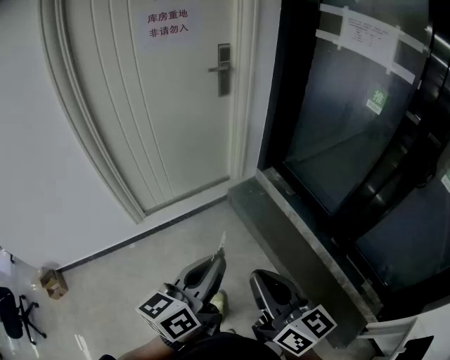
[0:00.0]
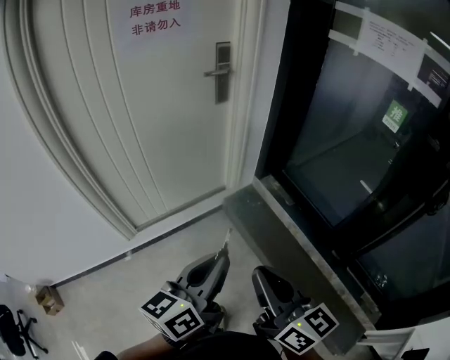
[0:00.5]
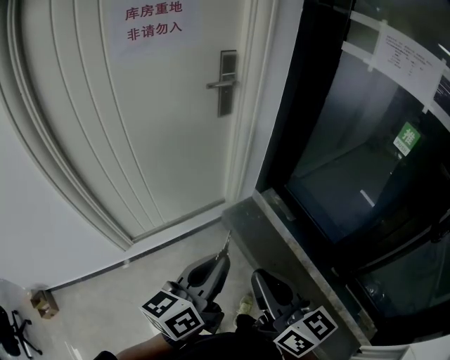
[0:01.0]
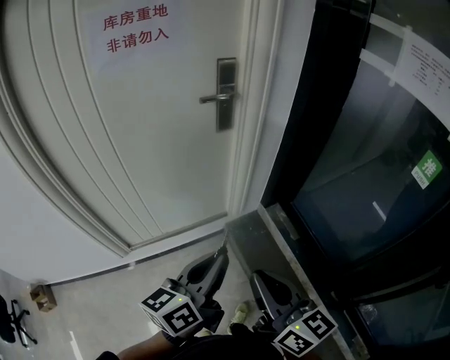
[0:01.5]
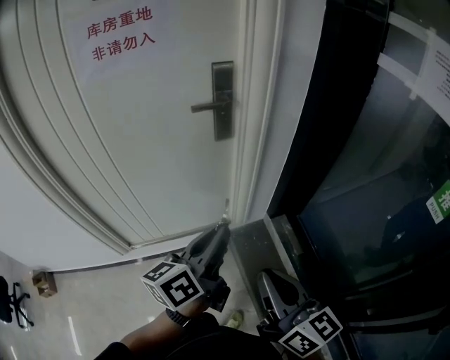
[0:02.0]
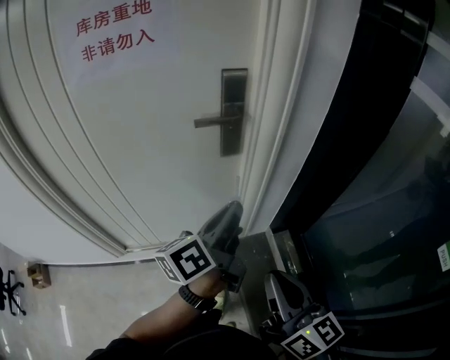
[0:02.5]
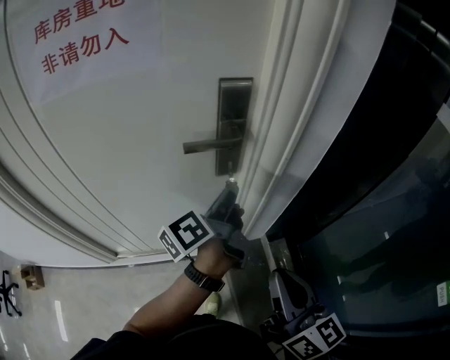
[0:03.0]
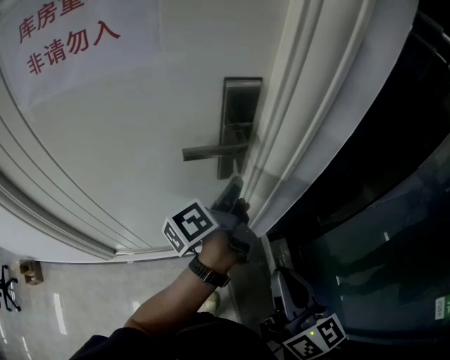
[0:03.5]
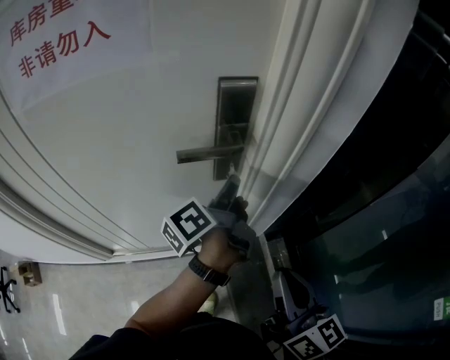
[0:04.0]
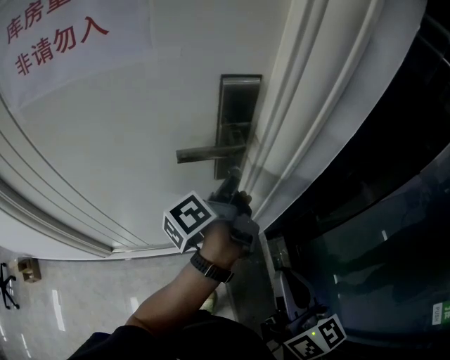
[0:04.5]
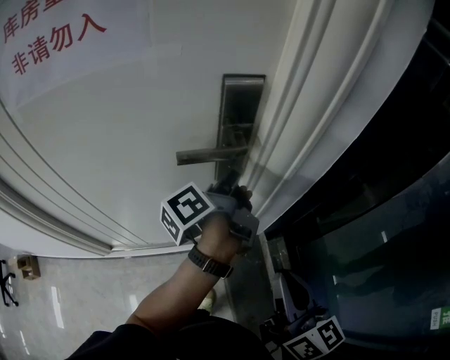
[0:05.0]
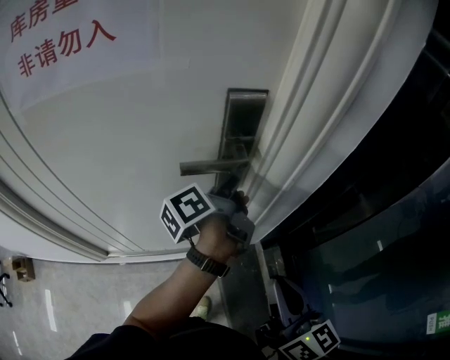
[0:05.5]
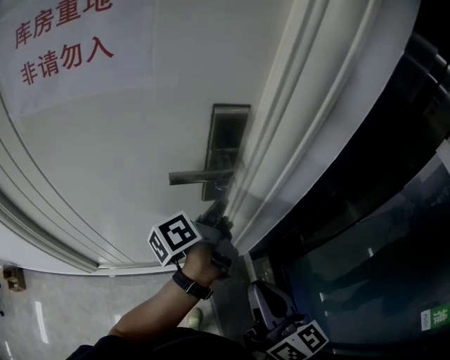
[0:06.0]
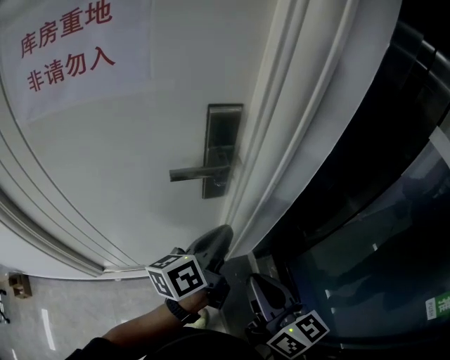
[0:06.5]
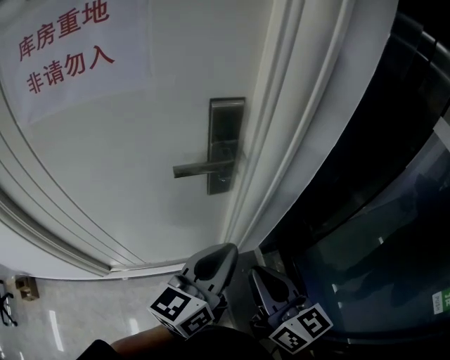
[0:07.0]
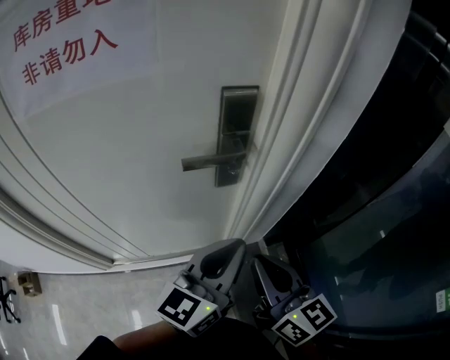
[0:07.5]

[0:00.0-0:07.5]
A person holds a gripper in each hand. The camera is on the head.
0:00.0 to 0:02.0: Both grippers are carried forward, about 50 cm.
0:02.0 to 0:04.0: Both grippers move forward, about 30 cm. The left gripper turns by approximately 40 degrees.
0:04.0 to 0:05.5: The grippers stay close to where they were, moving slightly.
0:05.5 to 0:07.5: The left gripper heads backward, covering some 20 cm, and rolls clockwise, seen from behind, by about 60 degrees.

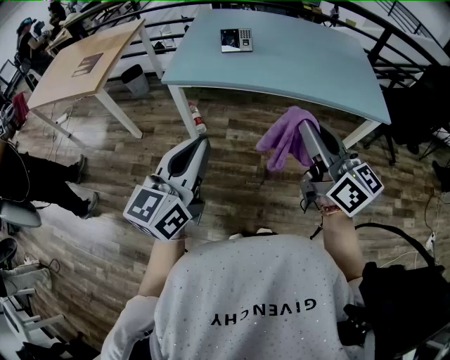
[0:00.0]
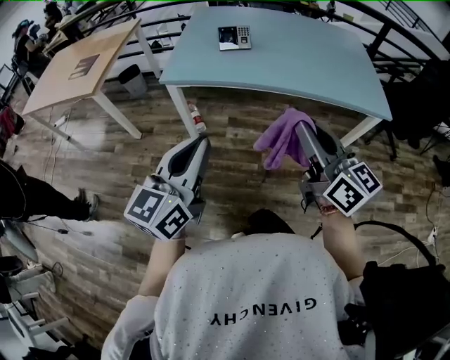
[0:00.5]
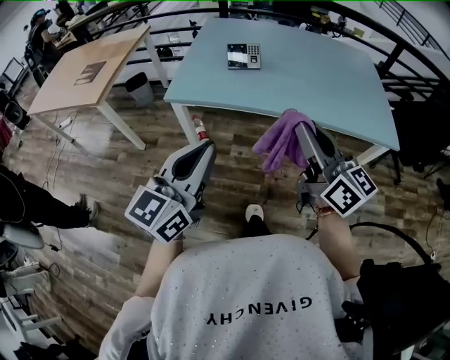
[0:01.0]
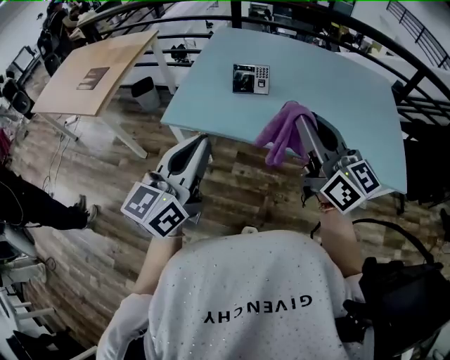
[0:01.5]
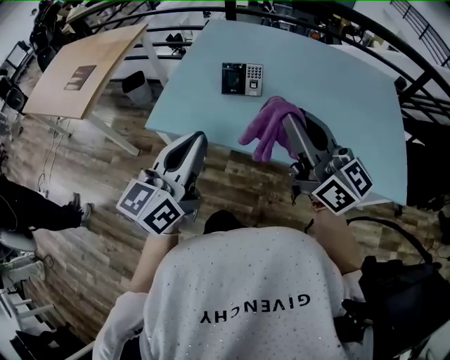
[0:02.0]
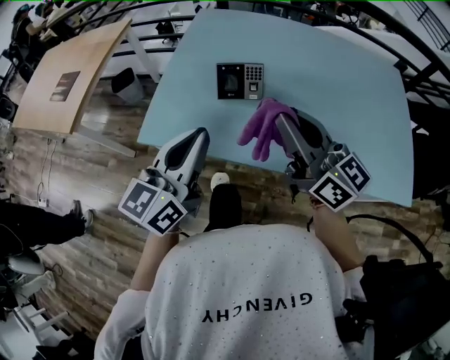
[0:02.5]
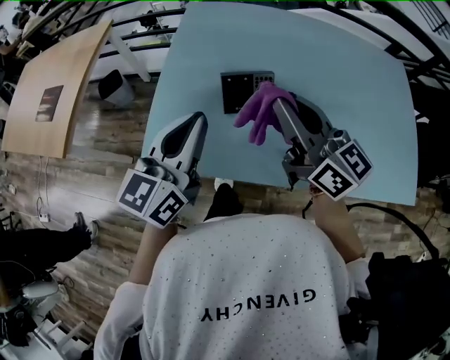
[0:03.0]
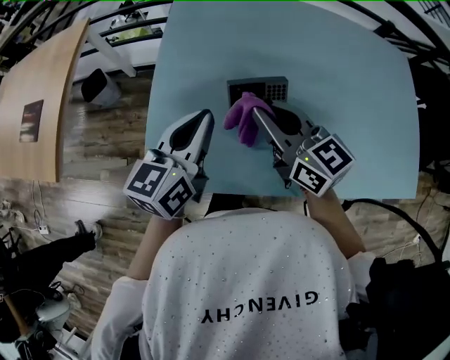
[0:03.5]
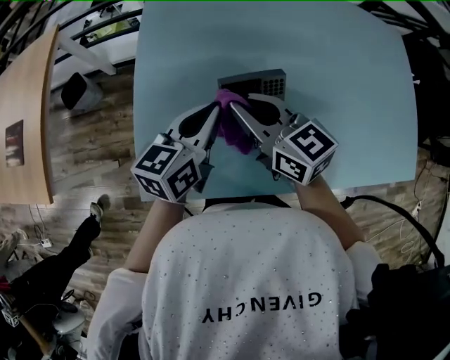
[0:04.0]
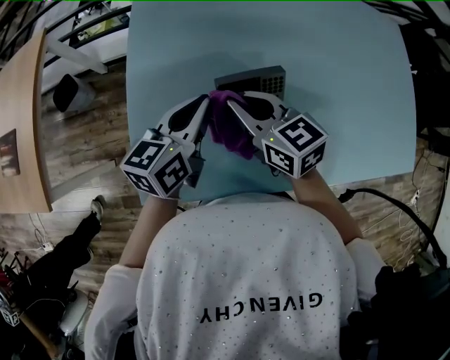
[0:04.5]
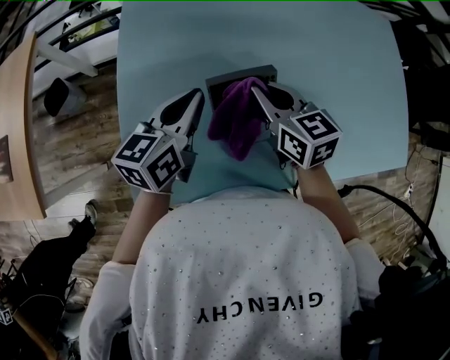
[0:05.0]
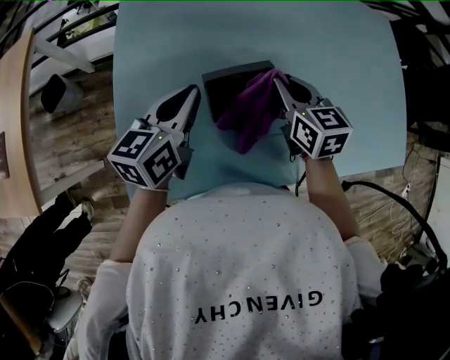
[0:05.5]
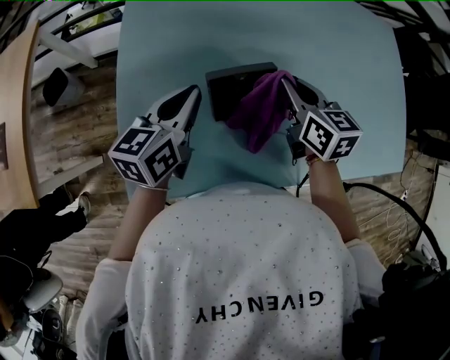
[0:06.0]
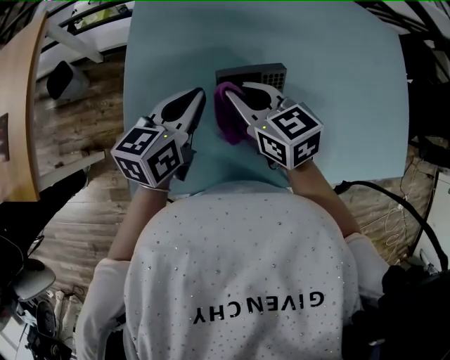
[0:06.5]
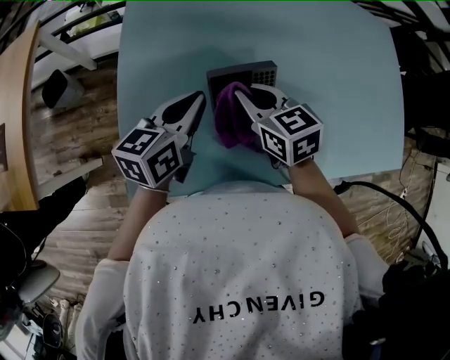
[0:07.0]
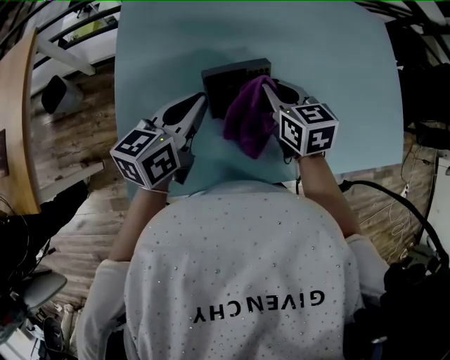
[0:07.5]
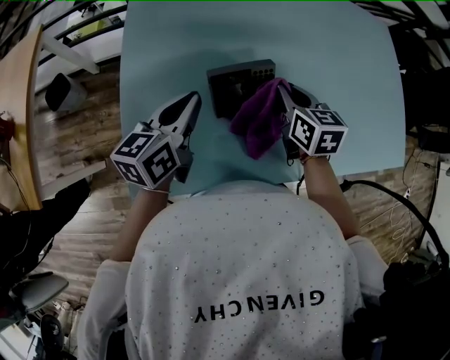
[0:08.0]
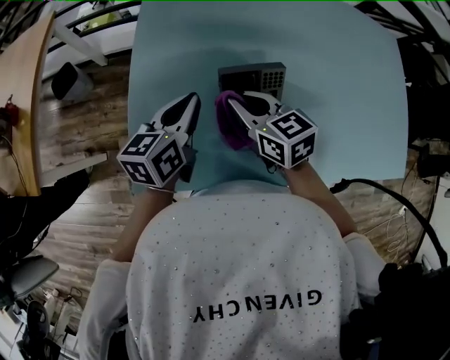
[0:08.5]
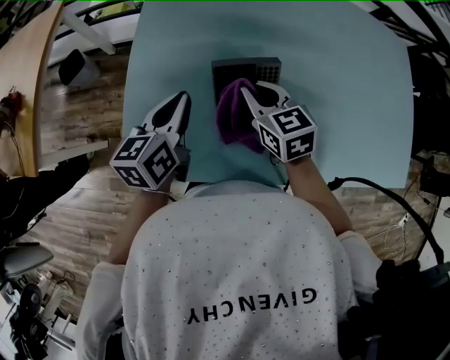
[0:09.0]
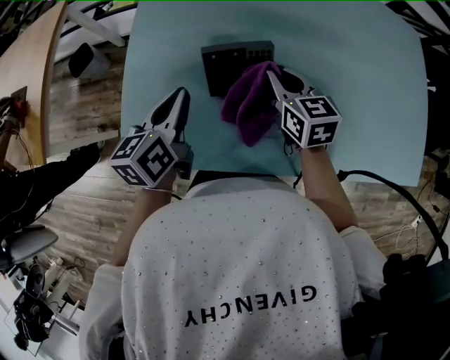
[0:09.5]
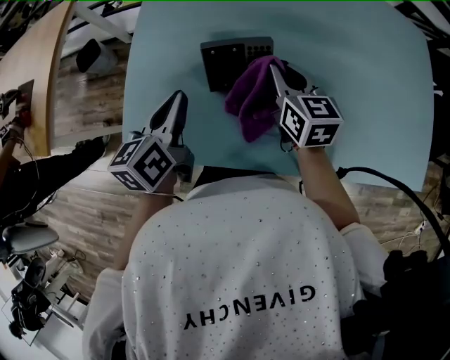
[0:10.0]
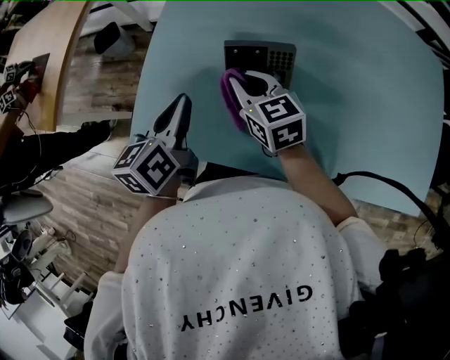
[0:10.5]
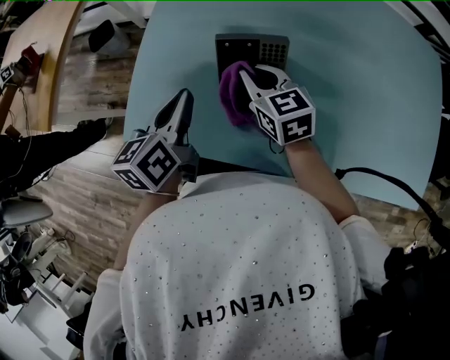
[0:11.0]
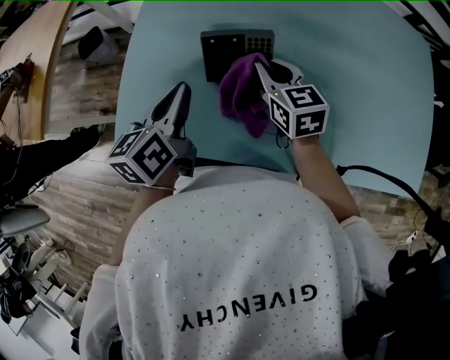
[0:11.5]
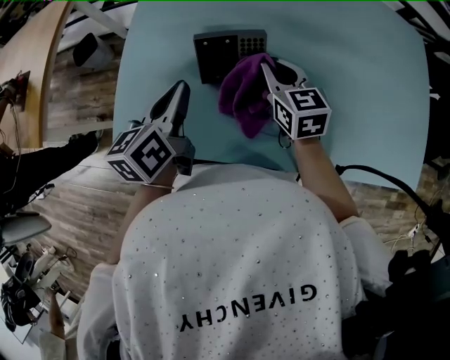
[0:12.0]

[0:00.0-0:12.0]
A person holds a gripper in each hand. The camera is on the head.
0:00.0 to 0:02.0: The grippers both shift forward by approximately 35 cm.
0:02.0 to 0:04.0: The left gripper is displaced forward and downward by roughly 40 cm, and swivels approximately 30 degrees, while the right gripper goes about 40 cm forward, downward and to the left, and angles its fingers downward, by about 30 degrees.
0:04.0 to 0:06.0: The right gripper is displaced to the right by roughly 15 cm, and turns by about 30 degrees.
0:06.0 to 0:08.0: The right gripper reaches some 15 cm to the left, then returns.
0:08.0 to 0:10.0: The right gripper goes to the left and returns, about 15 cm each way. Meanwhile the left gripper travels backward by about 5 cm, and changes its angle by about 20 degrees.
0:10.0 to 0:12.0: The right gripper moves approximately 15 cm to the left and comes back.

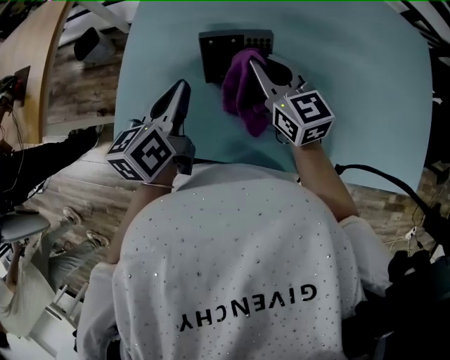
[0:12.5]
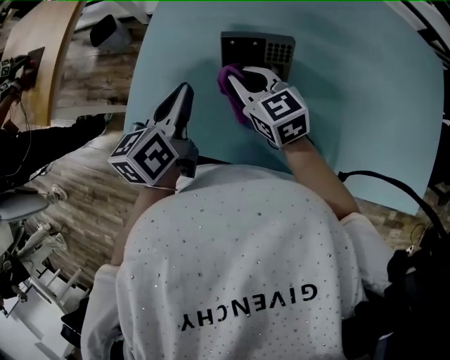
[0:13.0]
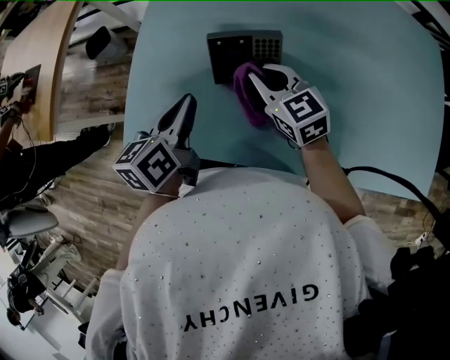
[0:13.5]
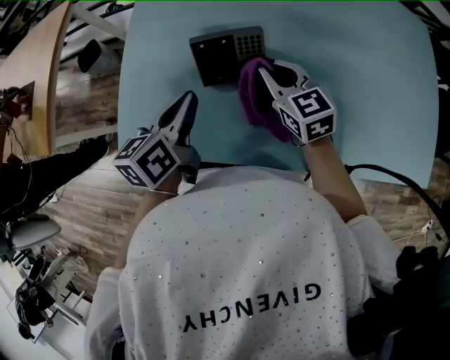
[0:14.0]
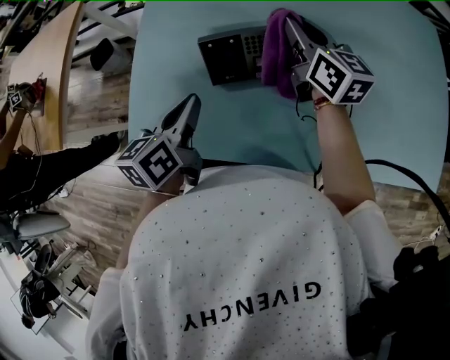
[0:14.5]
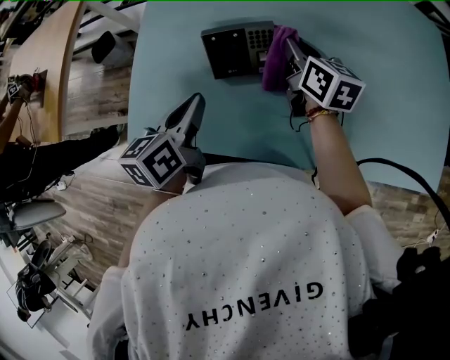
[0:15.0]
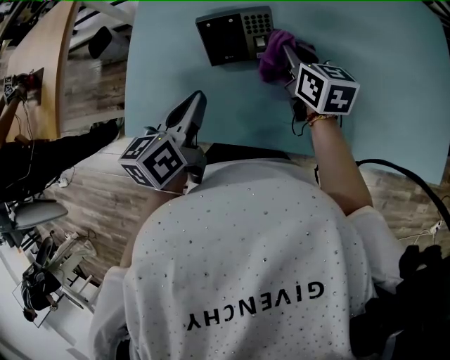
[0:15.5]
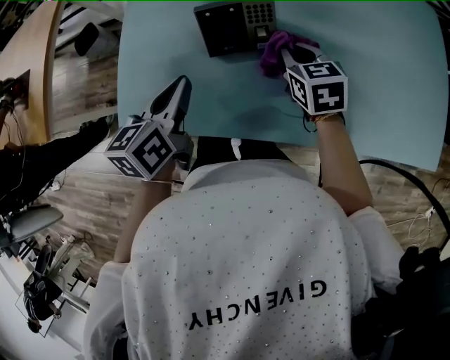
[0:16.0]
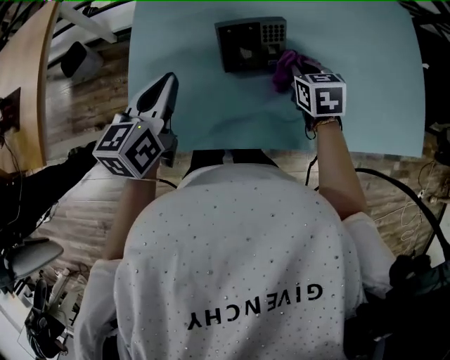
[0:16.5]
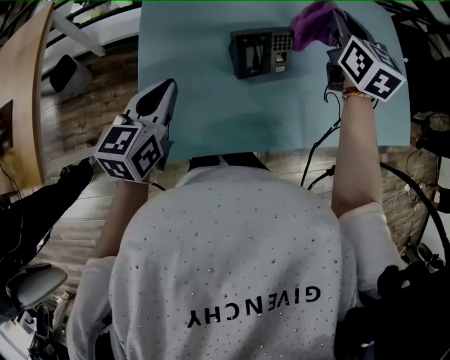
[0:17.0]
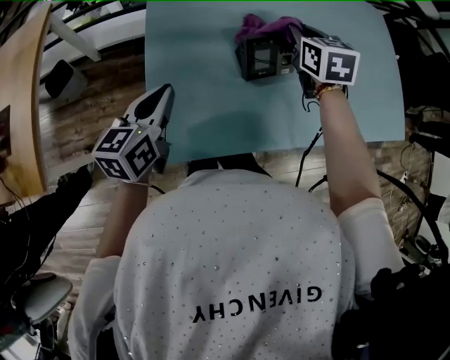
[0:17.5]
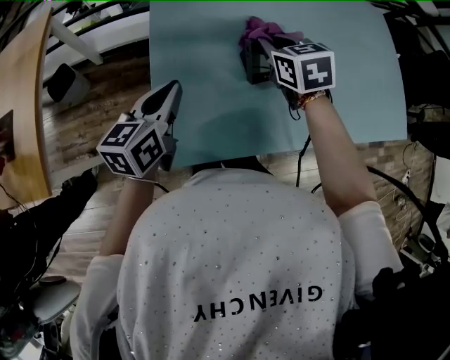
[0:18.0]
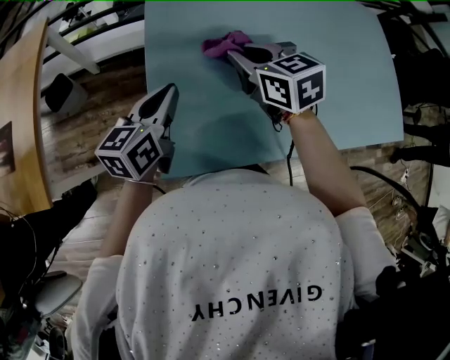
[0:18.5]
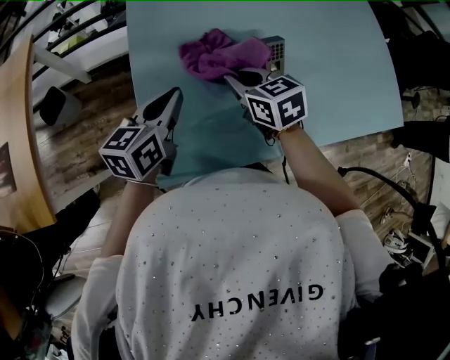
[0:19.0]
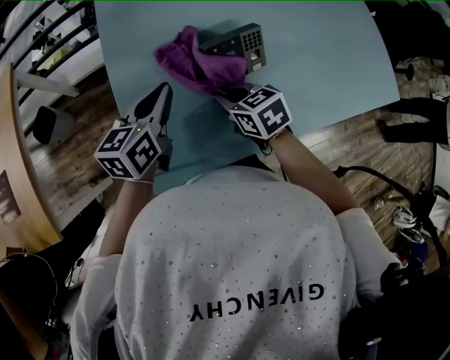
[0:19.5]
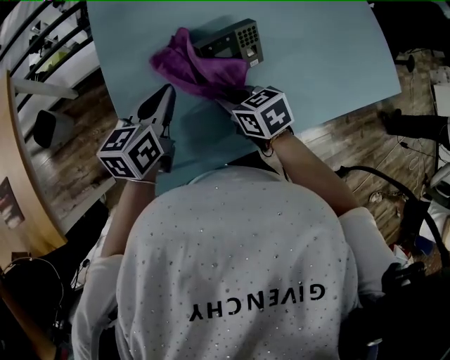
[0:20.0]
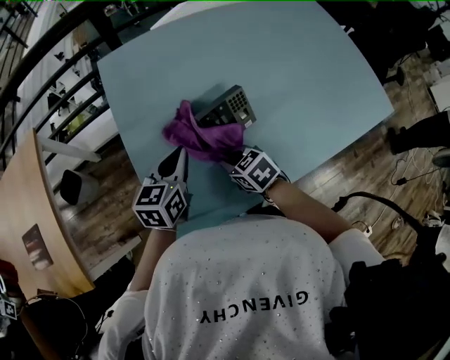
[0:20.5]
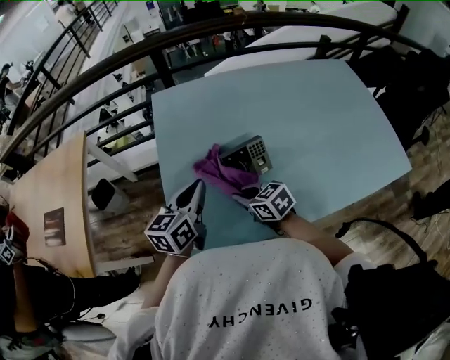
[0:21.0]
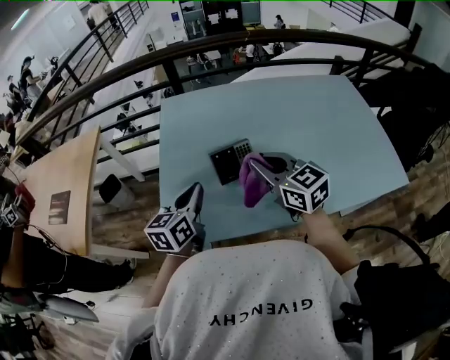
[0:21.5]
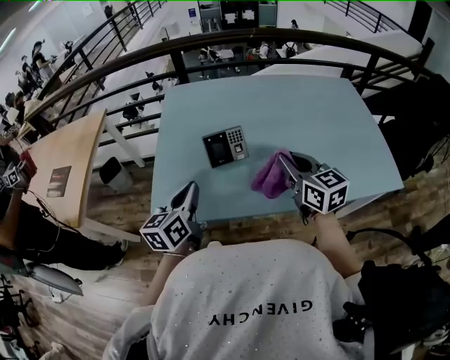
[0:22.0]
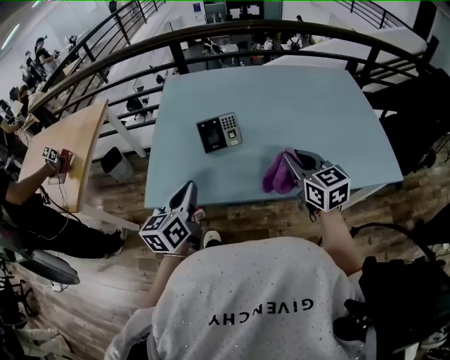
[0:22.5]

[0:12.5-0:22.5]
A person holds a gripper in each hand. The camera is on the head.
0:12.5 to 0:14.5: The right gripper heads to the right and forward, covering roughly 10 cm, and rotates roughly 20 degrees.
0:14.5 to 0:16.5: The left gripper goes roughly 10 cm to the left; the right gripper travels downward and backward by roughly 15 cm, and points its fingers about 40 degrees further downward.
0:16.5 to 0:18.5: The right gripper shifts some 25 cm to the left and upward, and changes its angle by about 20 degrees; the left gripper travels to the left by approximately 10 cm.
0:18.5 to 0:20.5: The left gripper goes some 10 cm to the right. Meanwhile the right gripper moves downward, backward and to the right, approximately 20 cm.
0:20.5 to 0:22.5: The right gripper travels to the right, upward and backward by about 35 cm, and tips its fingers upward by some 30 degrees. The left gripper heads backward, covering approximately 25 cm, and changes its angle by roughly 30 degrees.
